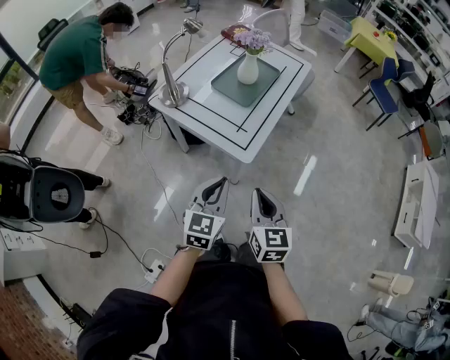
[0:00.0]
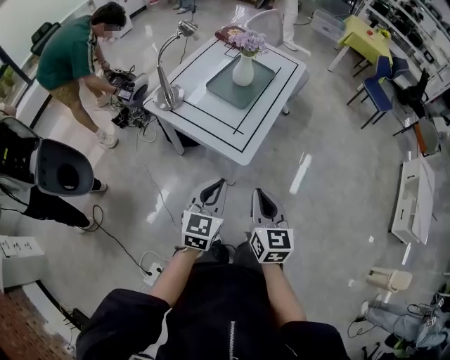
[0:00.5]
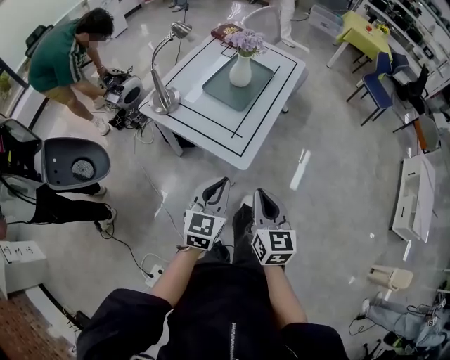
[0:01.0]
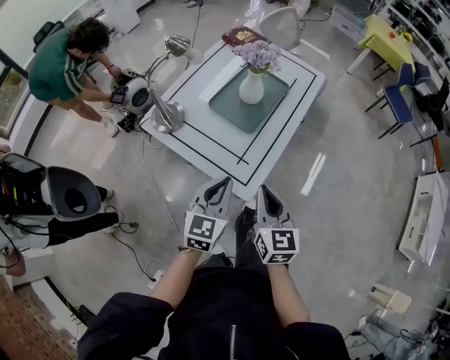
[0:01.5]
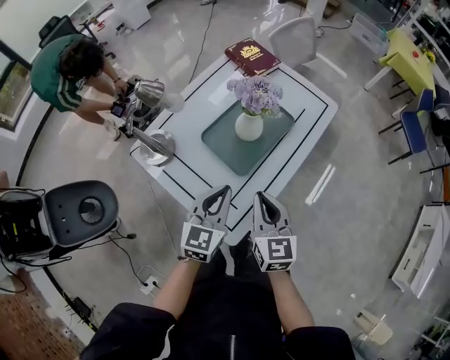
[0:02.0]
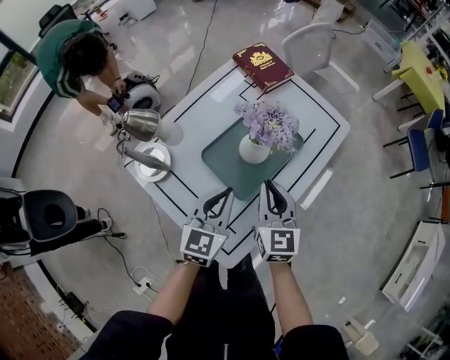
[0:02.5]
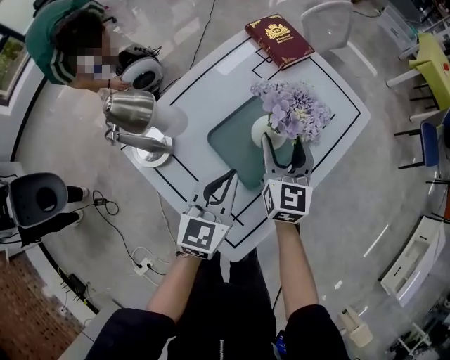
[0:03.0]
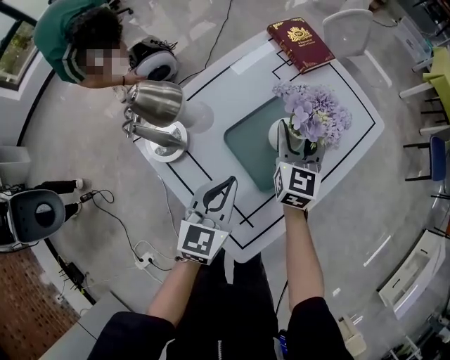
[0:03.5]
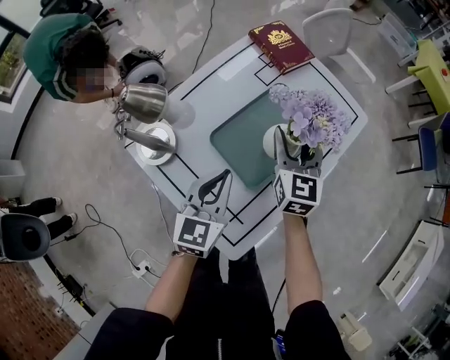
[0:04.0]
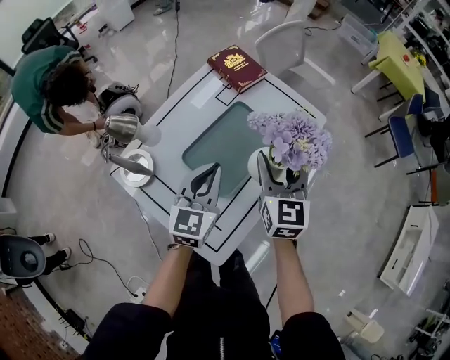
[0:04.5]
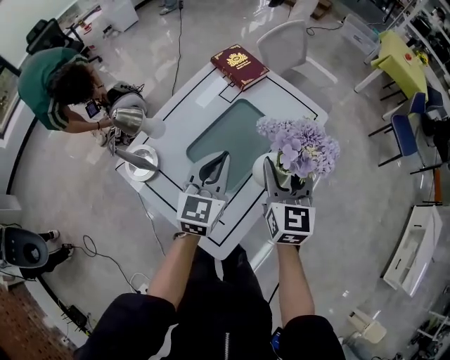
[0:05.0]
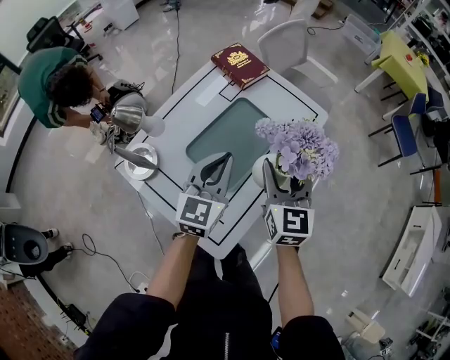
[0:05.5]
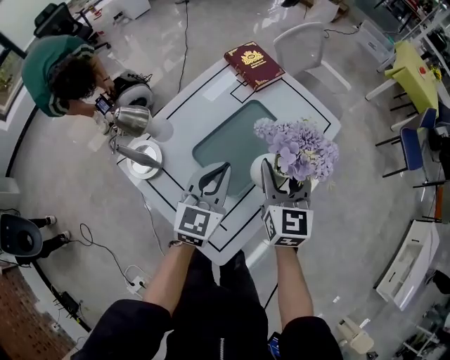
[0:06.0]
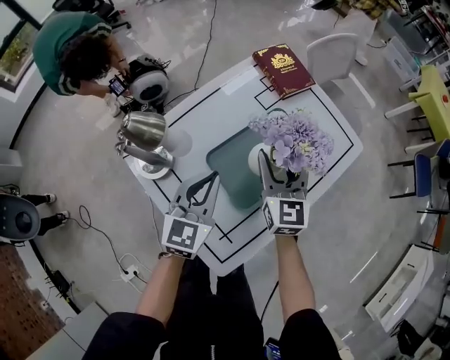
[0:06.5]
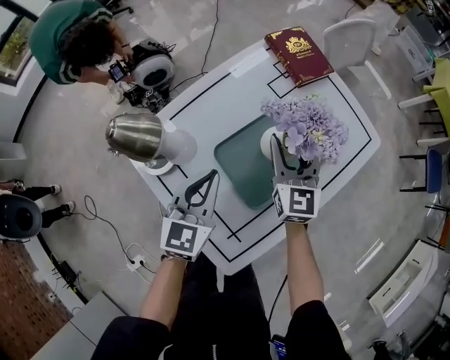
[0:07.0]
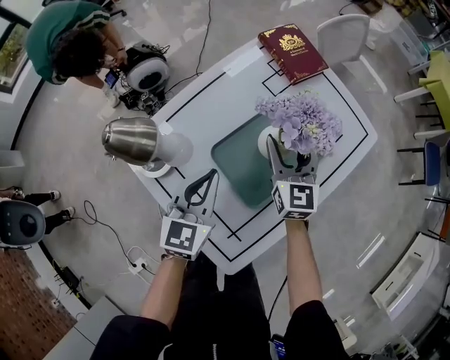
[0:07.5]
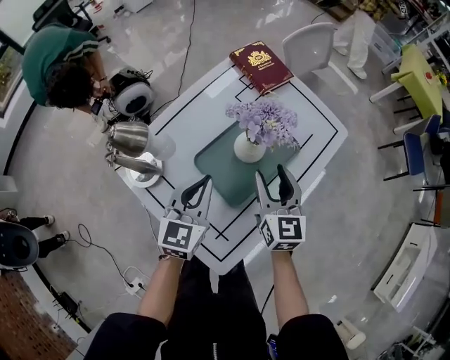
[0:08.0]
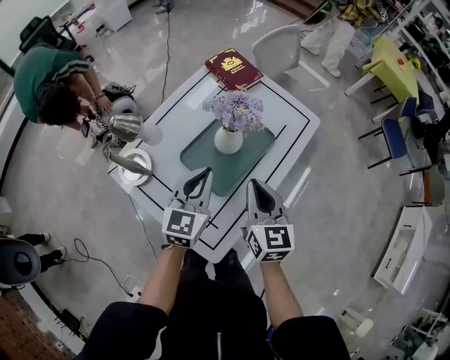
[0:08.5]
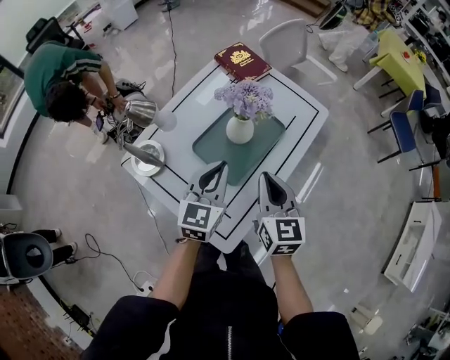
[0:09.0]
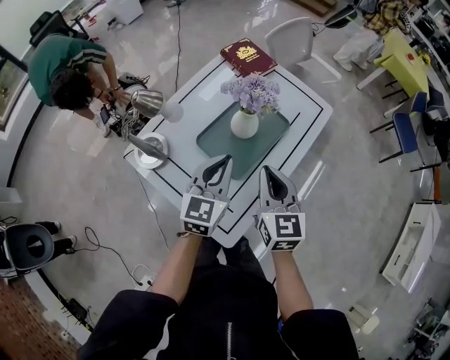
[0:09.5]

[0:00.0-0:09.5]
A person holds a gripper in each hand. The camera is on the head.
0:00.0 to 0:02.0: The two grippers go about 30 cm forward.
0:02.0 to 0:04.0: The left gripper goes about 10 cm forward and to the left. Meanwhile the right gripper moves forward, roughly 25 cm, and opens.
0:04.0 to 0:05.5: The right gripper goes roughly 15 cm upward, backward and to the right. Meanwhile the left gripper travels upward and to the right by some 10 cm.
0:05.5 to 0:07.5: The right gripper is displaced forward, downward and to the left by approximately 20 cm. Meanwhile the left gripper heads to the left and downward, covering some 15 cm.
0:07.5 to 0:09.5: The left gripper goes some 15 cm to the right, upward and backward. Meanwhile the right gripper heads backward and upward, covering some 25 cm, and closes its fingers.

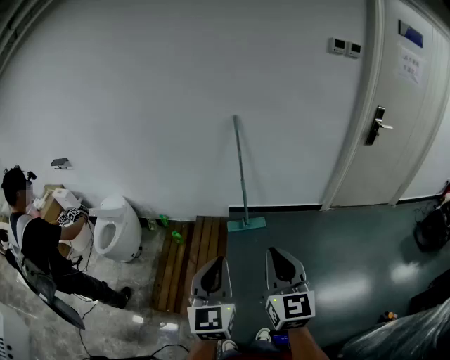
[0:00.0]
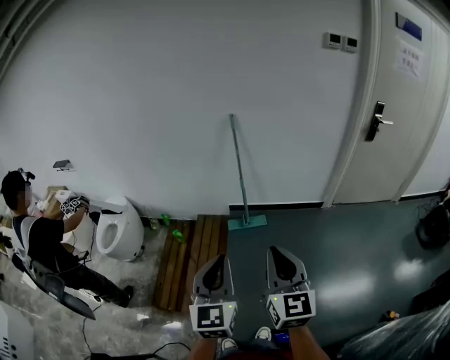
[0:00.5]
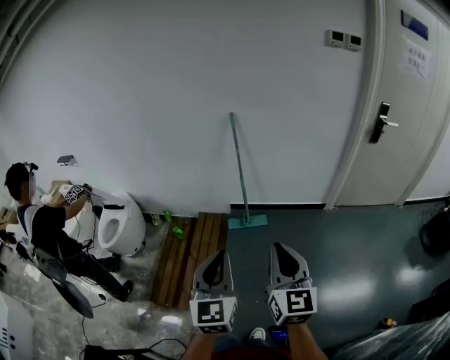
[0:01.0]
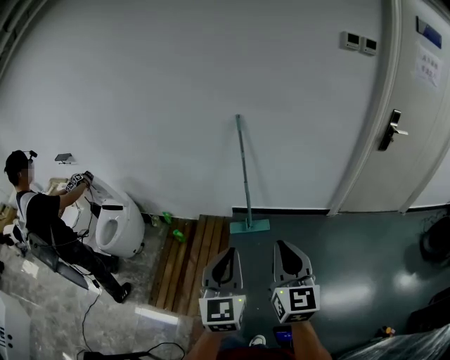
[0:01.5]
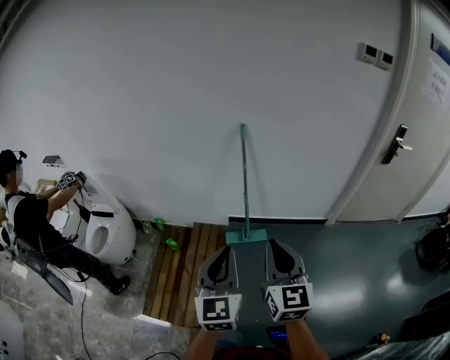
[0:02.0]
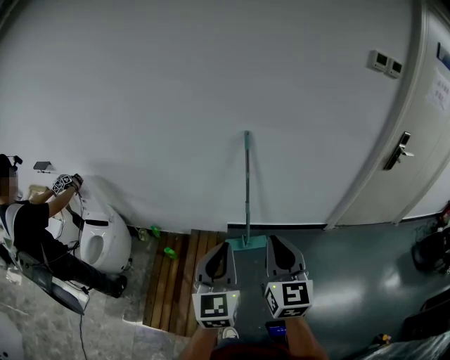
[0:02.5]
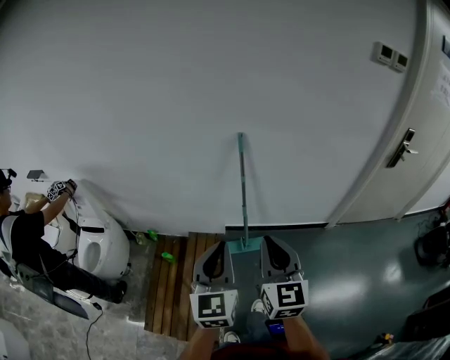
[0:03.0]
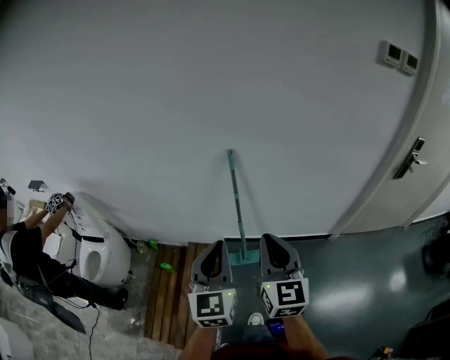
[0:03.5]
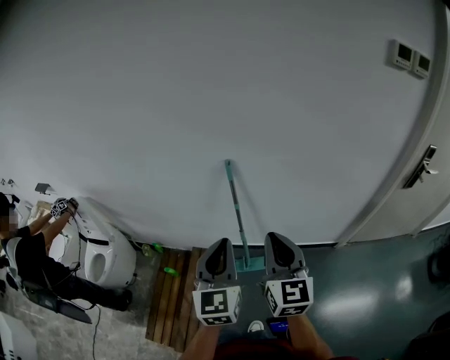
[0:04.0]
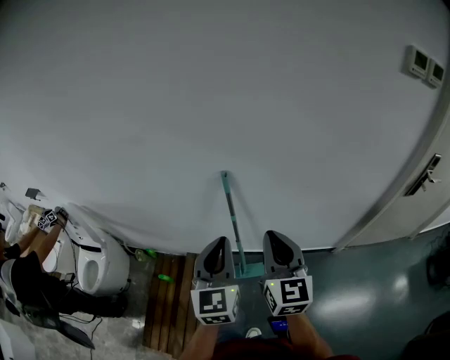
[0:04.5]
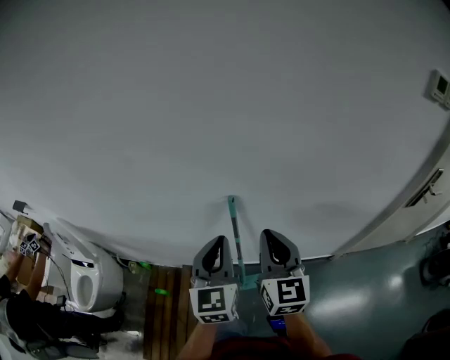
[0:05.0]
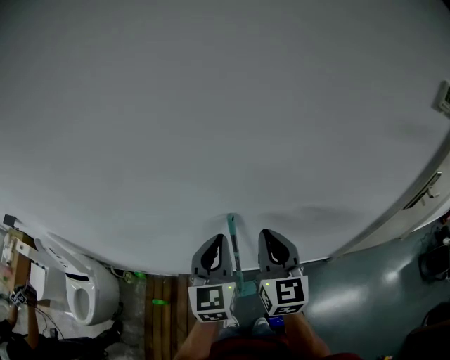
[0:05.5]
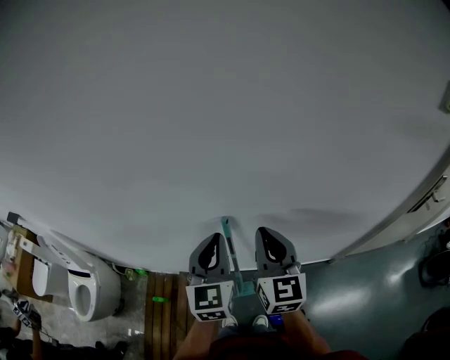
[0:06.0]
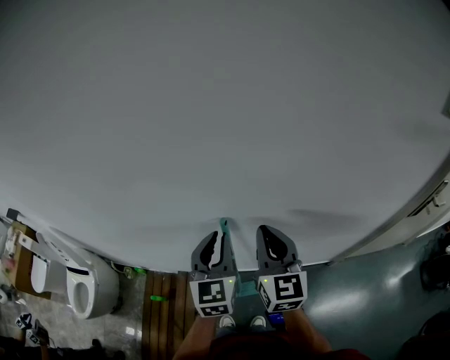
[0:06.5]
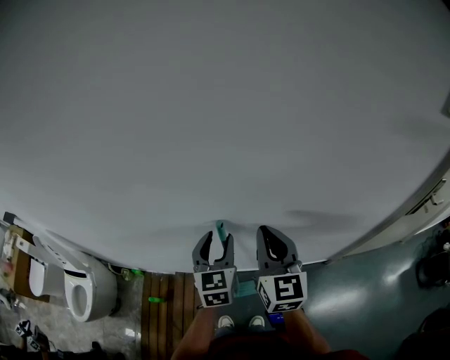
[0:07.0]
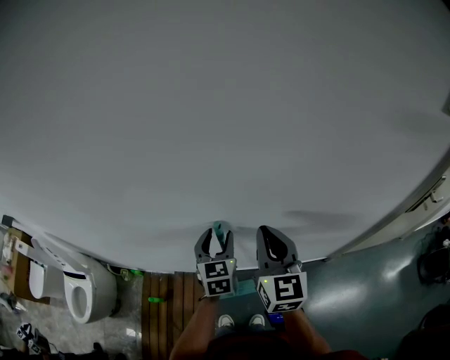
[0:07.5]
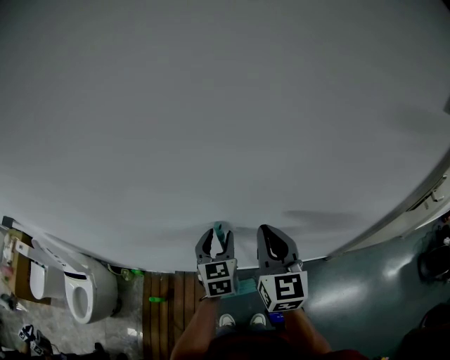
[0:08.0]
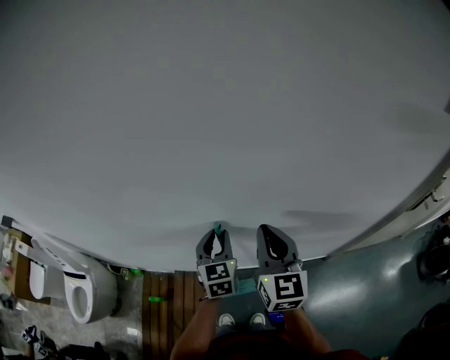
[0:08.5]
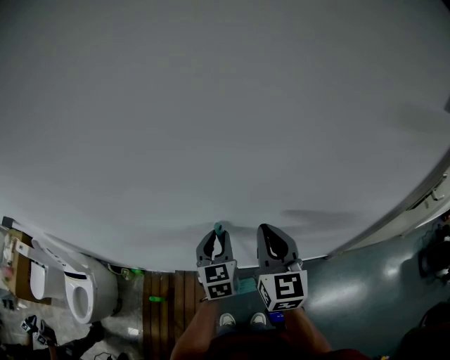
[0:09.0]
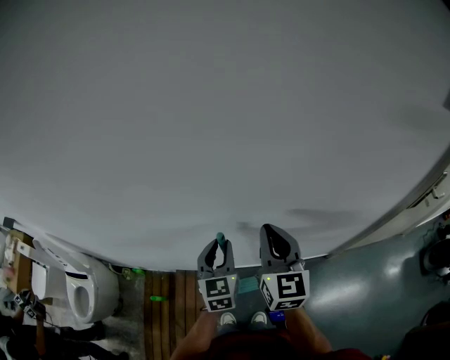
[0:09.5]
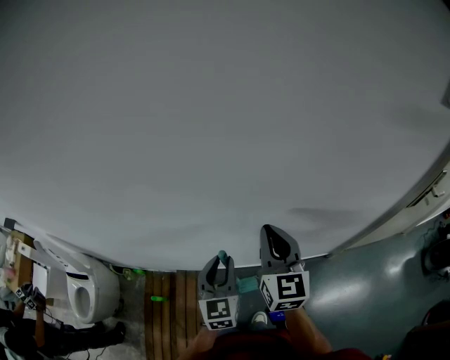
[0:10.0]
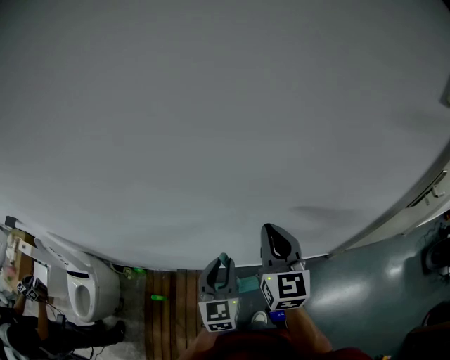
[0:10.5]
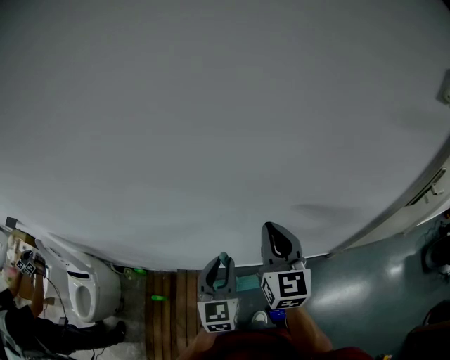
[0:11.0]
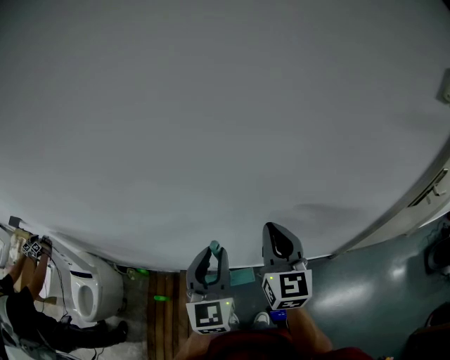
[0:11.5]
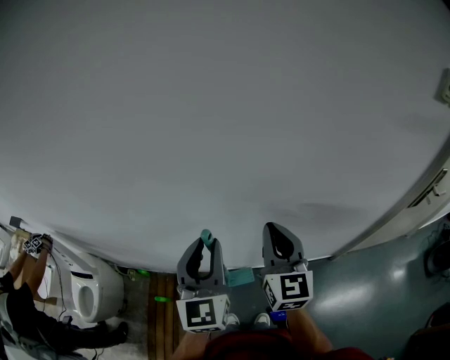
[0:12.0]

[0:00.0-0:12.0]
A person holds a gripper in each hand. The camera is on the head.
0:00.0 to 0:02.0: Both grippers travel together forward, some 25 cm.
0:02.0 to 0:04.0: Both grippers travel together forward, about 35 cm.
0:04.0 to 0:06.0: The grippers both shift forward by about 30 cm.
0:06.0 to 0:08.0: The left gripper moves downward and forward, some 15 cm, and opens.
0:08.0 to 0:10.0: The left gripper heads backward, covering approximately 10 cm, and closes.
0:10.0 to 0:12.0: The left gripper goes roughly 15 cm upward.

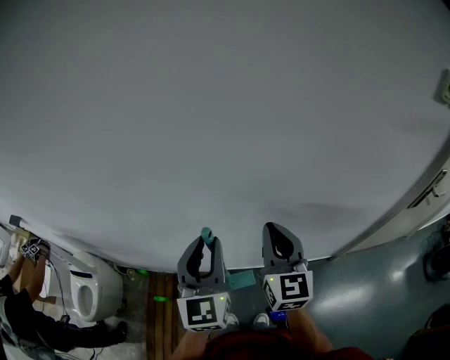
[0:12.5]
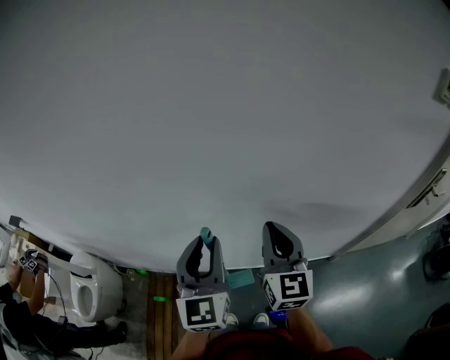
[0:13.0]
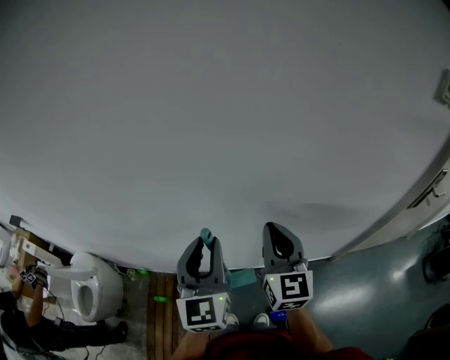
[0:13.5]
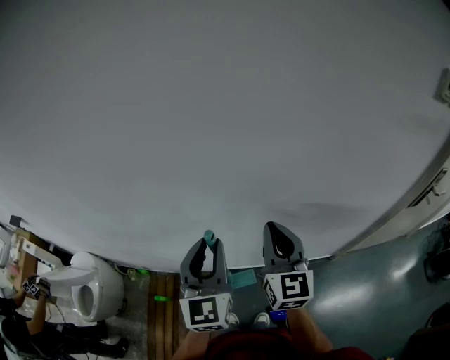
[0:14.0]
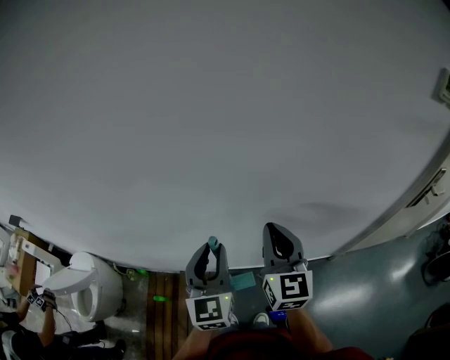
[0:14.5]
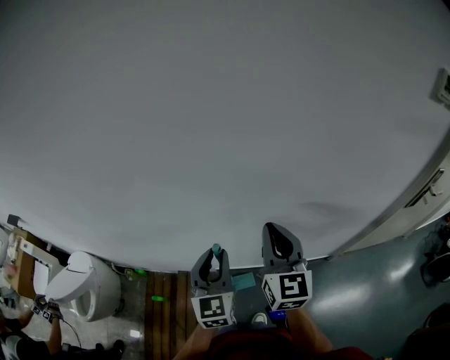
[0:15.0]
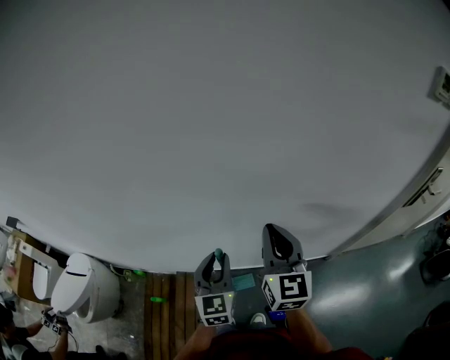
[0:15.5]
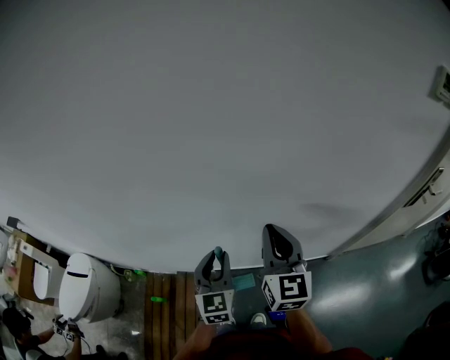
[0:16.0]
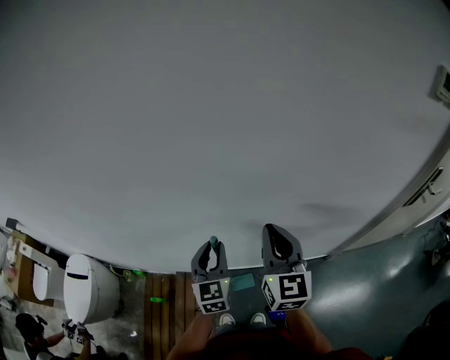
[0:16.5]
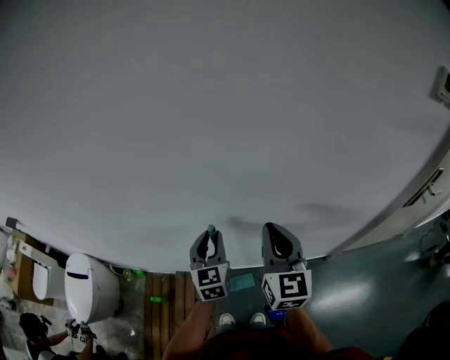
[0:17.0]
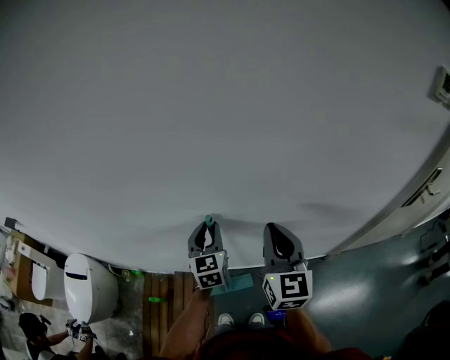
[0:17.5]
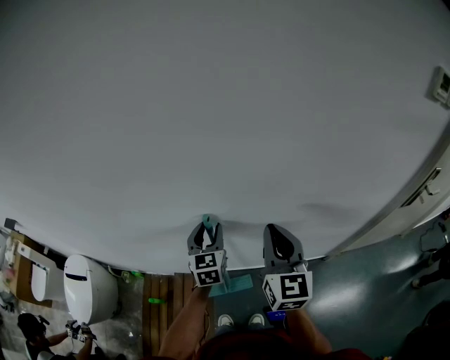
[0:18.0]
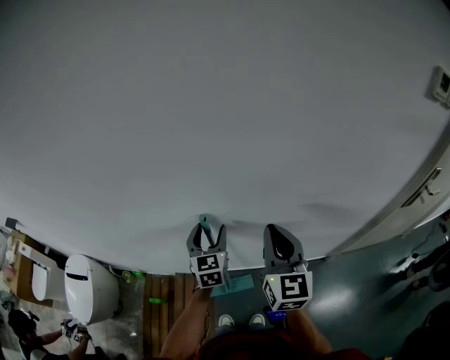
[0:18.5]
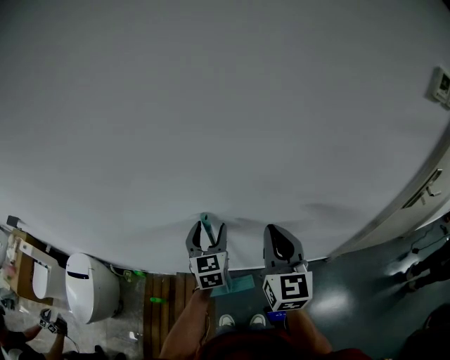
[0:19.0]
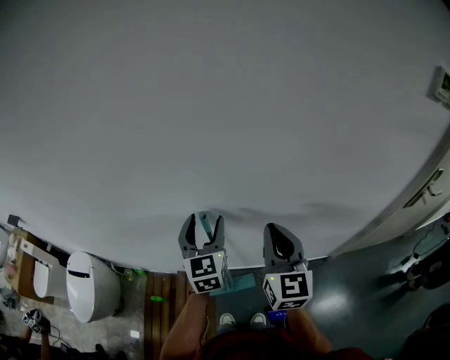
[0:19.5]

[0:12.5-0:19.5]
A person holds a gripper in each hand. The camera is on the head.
0:12.5 to 0:14.5: The grippers make only small movements.
0:14.5 to 0:16.0: The left gripper goes some 10 cm downward.
0:16.0 to 0:17.5: The left gripper shifts approximately 10 cm forward.
0:17.5 to 0:19.5: The left gripper is displaced upward by roughly 10 cm, and opens.
